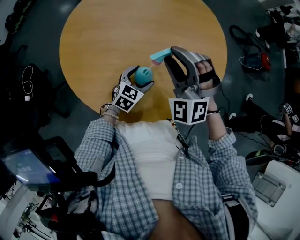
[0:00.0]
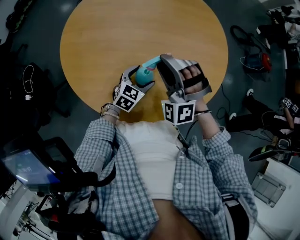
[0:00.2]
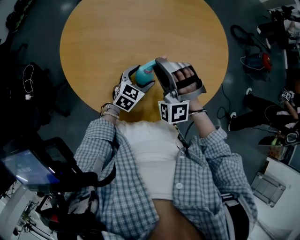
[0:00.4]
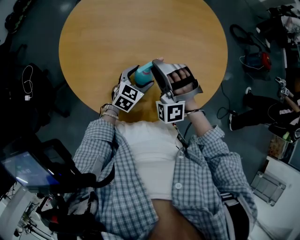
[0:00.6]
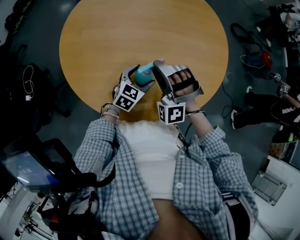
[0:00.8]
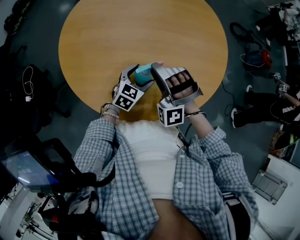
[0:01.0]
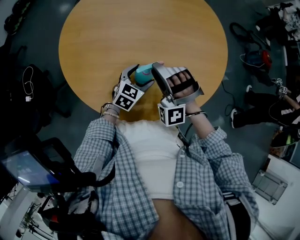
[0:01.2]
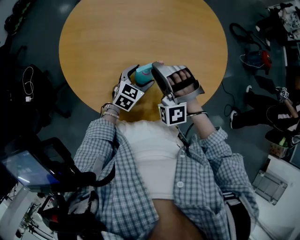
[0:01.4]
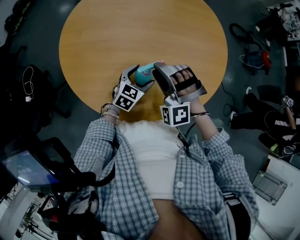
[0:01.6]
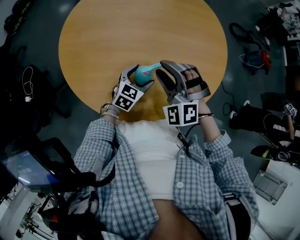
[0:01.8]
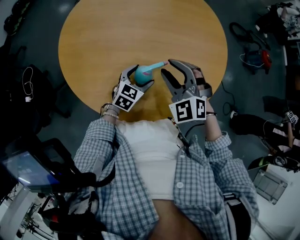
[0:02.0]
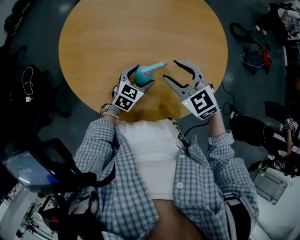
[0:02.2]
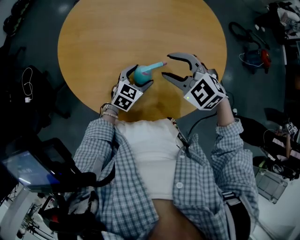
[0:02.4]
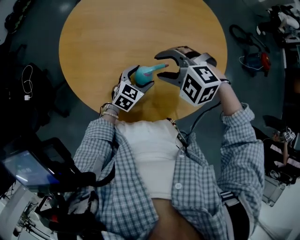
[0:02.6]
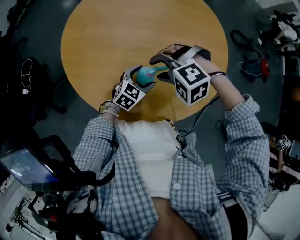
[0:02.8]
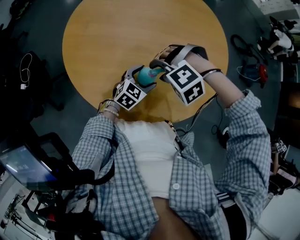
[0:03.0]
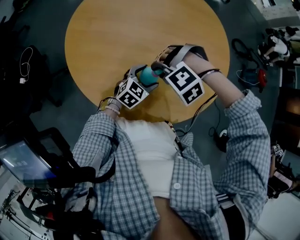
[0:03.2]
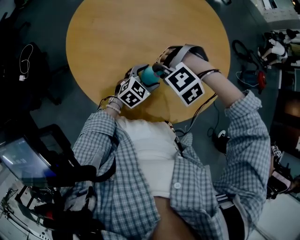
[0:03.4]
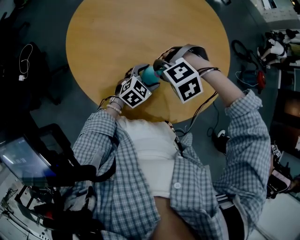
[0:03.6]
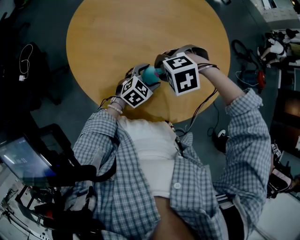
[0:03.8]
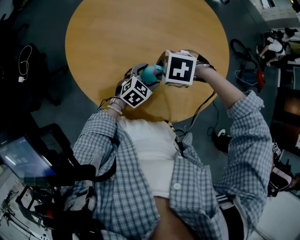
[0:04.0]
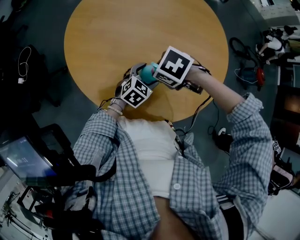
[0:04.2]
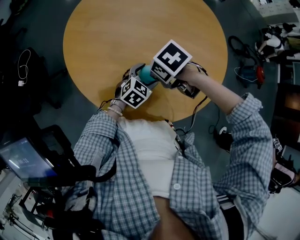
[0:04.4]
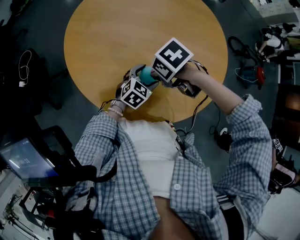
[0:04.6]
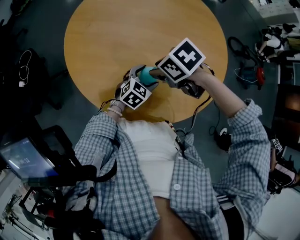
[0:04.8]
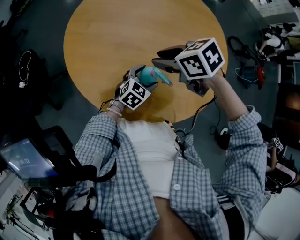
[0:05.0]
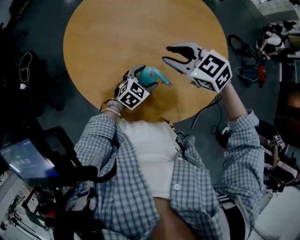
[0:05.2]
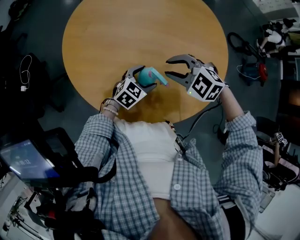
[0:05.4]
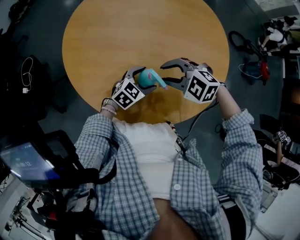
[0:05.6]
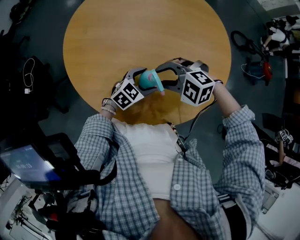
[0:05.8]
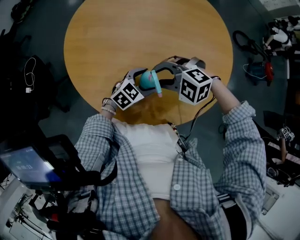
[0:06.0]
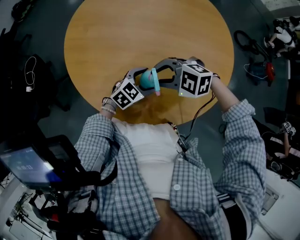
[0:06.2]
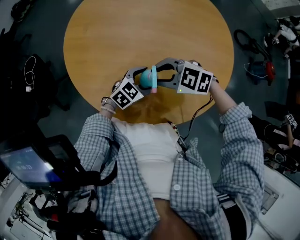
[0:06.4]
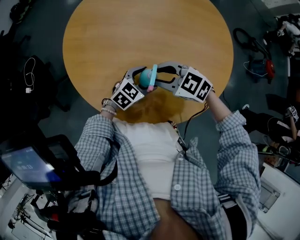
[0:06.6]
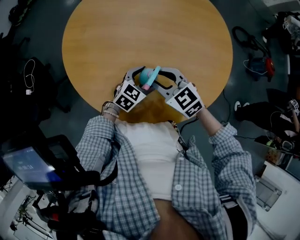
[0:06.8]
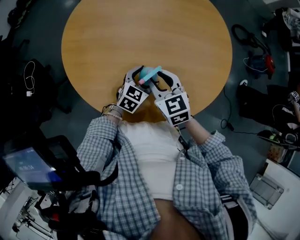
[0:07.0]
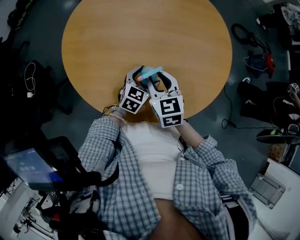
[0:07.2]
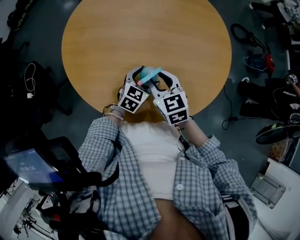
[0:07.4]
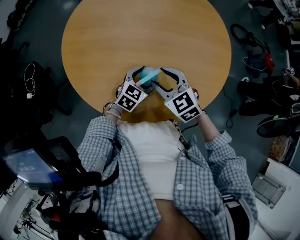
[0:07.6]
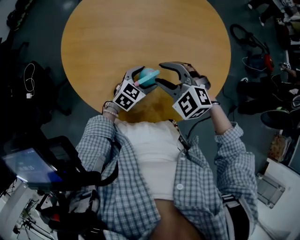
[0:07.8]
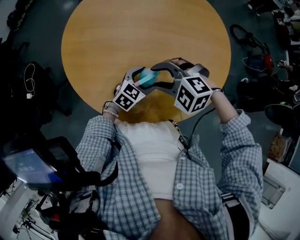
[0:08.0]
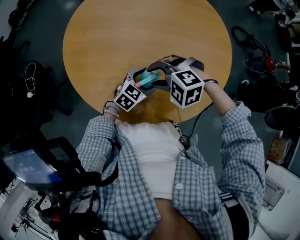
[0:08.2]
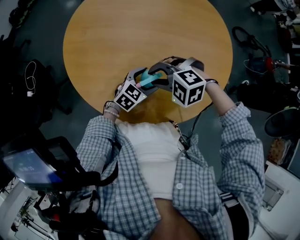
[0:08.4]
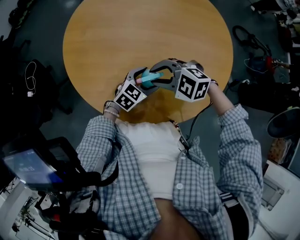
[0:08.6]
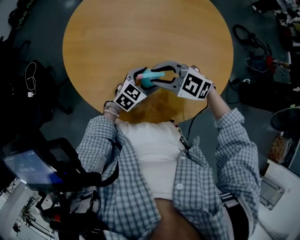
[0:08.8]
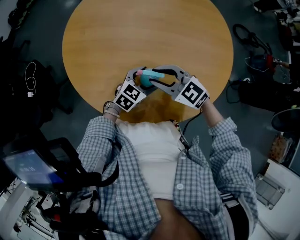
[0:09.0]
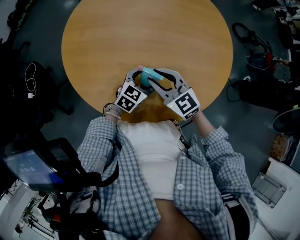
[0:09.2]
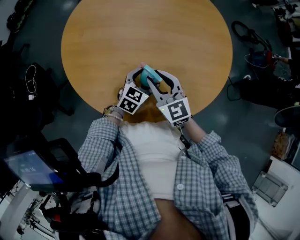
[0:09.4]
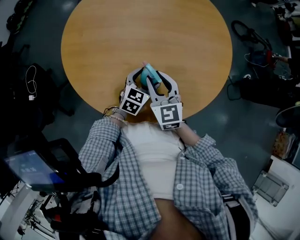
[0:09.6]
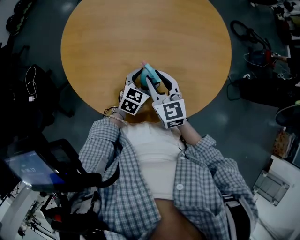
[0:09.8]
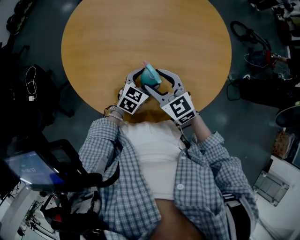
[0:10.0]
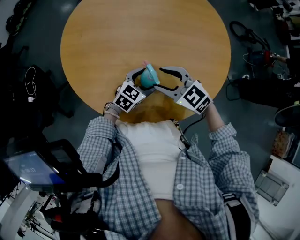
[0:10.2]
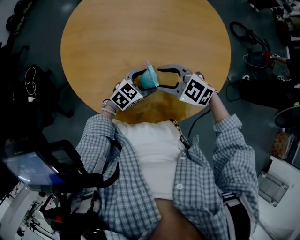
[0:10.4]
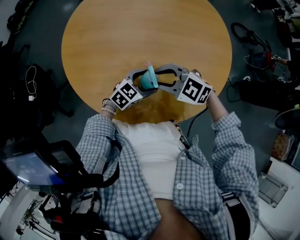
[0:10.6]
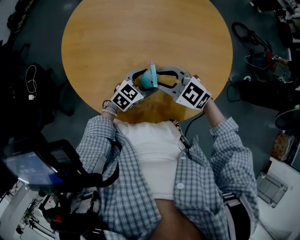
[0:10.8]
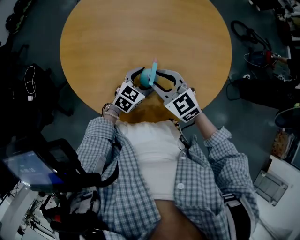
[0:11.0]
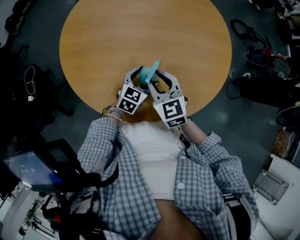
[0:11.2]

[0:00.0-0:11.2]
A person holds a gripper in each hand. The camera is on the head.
0:00.0 to 0:01.6: The right gripper is displaced downward by approximately 10 cm.
0:01.6 to 0:03.2: The right gripper angles its fingers downward, by some 50 degrees.
0:03.2 to 0:04.8: The right gripper twists about 90 degrees clockwise, seen from behind.
0:04.8 to 0:06.4: The right gripper travels upward and back again, roughly 5 cm each way, and rolls counterclockwise, seen from behind, by roughly 40 degrees.
0:06.4 to 0:08.0: The right gripper turns by roughly 30 degrees.
0:08.0 to 0:09.6: The right gripper angles its fingers upward, by approximately 30 degrees.
0:09.6 to 0:11.2: The right gripper opens, then closes again.

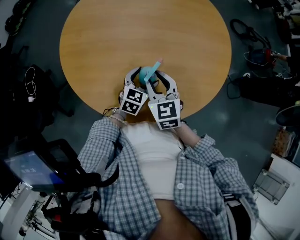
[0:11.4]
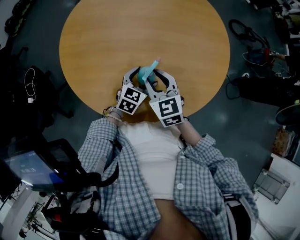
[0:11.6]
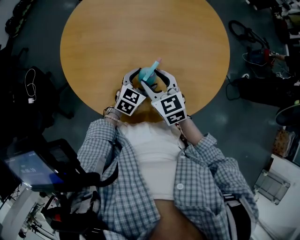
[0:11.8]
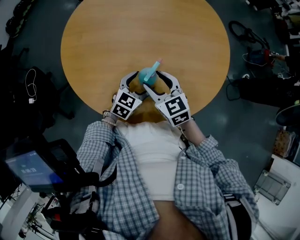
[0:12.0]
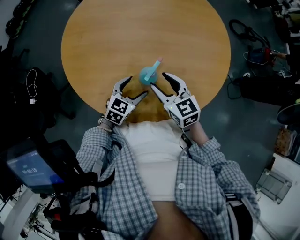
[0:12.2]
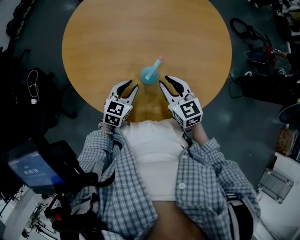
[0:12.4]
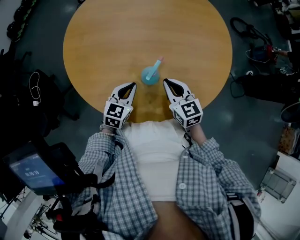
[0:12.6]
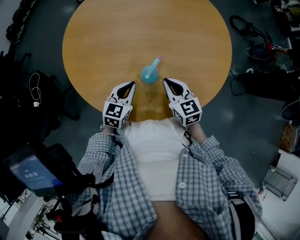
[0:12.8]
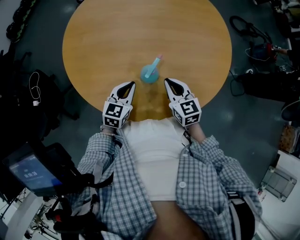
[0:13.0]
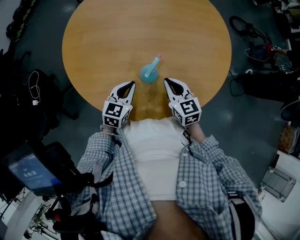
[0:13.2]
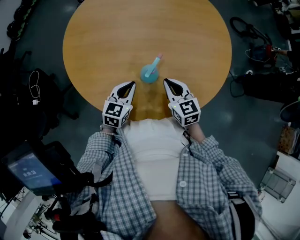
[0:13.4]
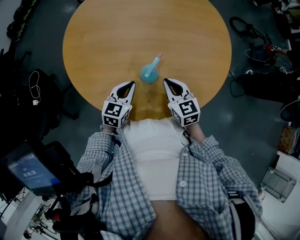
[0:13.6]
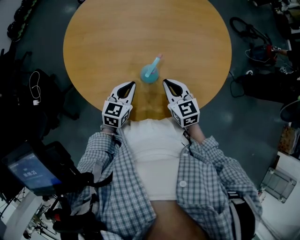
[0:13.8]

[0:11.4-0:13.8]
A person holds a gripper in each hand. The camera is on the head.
0:11.4 to 0:12.6: The left gripper moves to the left, roughly 10 cm, and closes its fingers. Meanwhile the right gripper shifts roughly 5 cm to the right, and closes.
0:12.6 to 0:13.8: The grippers make only small movements.

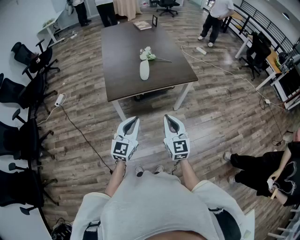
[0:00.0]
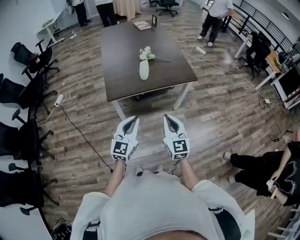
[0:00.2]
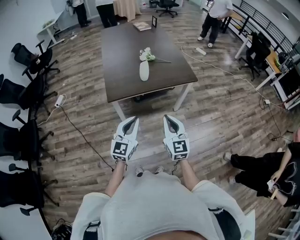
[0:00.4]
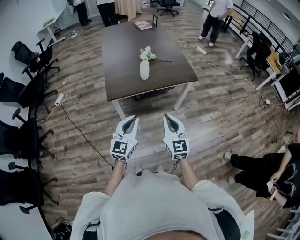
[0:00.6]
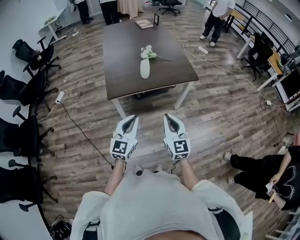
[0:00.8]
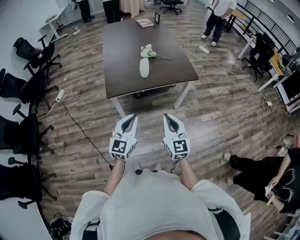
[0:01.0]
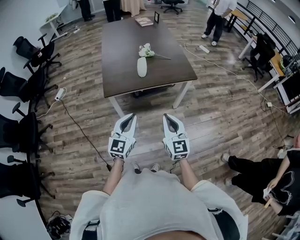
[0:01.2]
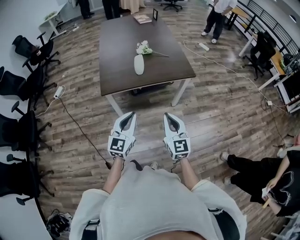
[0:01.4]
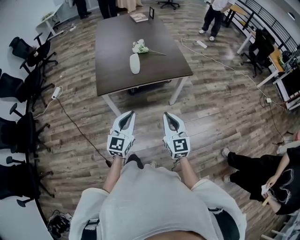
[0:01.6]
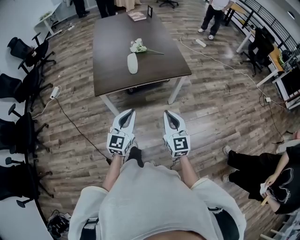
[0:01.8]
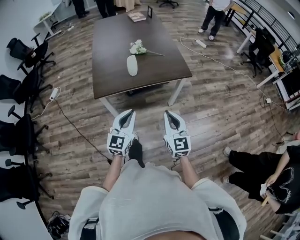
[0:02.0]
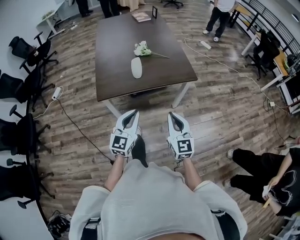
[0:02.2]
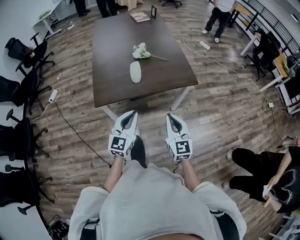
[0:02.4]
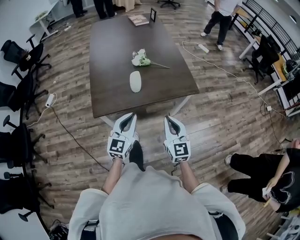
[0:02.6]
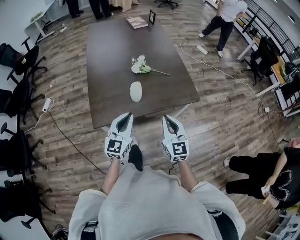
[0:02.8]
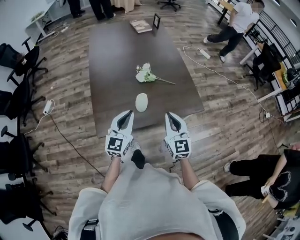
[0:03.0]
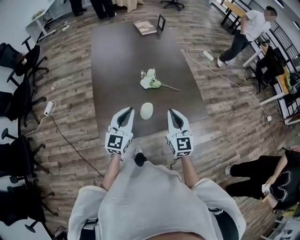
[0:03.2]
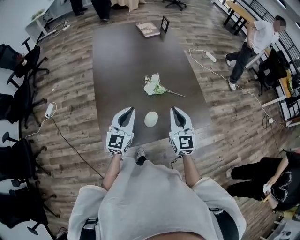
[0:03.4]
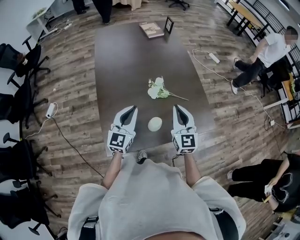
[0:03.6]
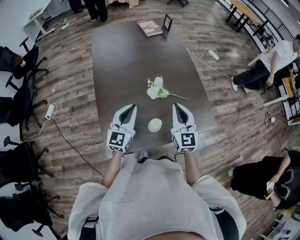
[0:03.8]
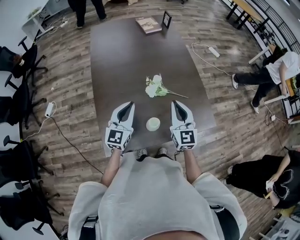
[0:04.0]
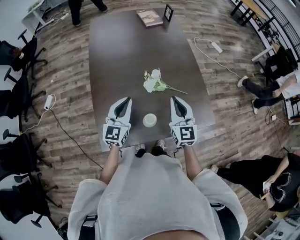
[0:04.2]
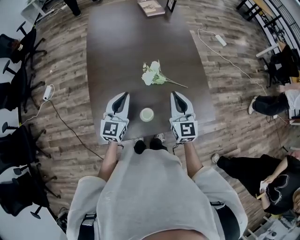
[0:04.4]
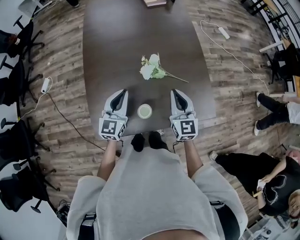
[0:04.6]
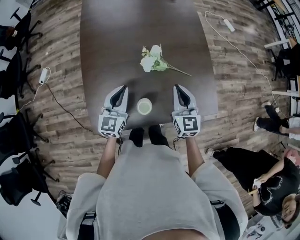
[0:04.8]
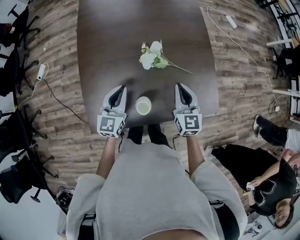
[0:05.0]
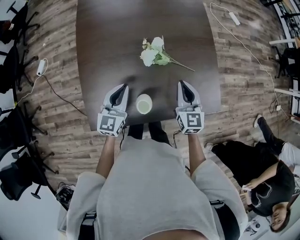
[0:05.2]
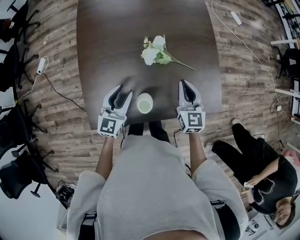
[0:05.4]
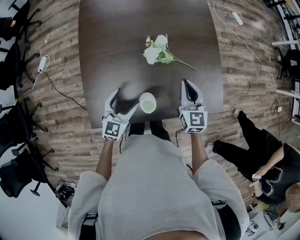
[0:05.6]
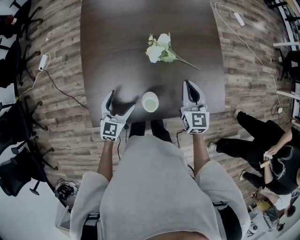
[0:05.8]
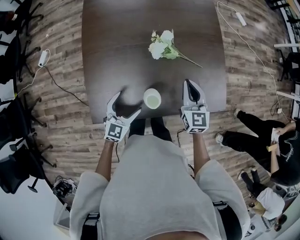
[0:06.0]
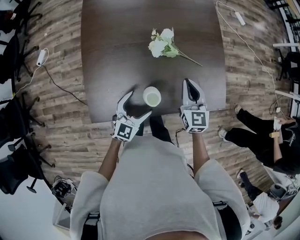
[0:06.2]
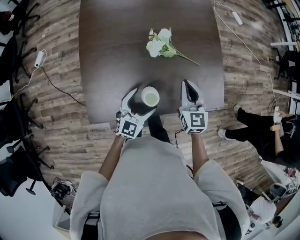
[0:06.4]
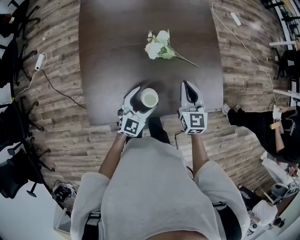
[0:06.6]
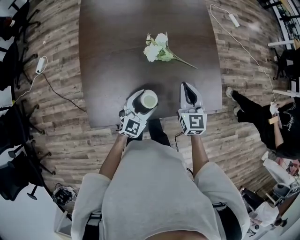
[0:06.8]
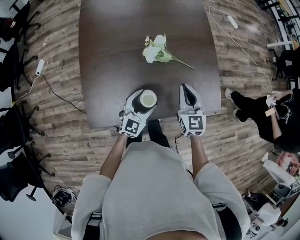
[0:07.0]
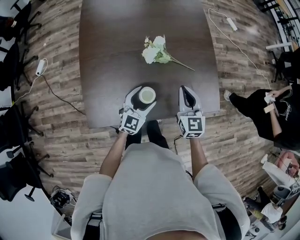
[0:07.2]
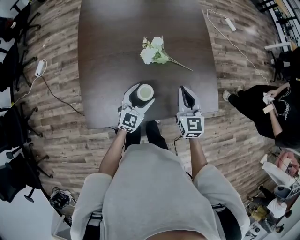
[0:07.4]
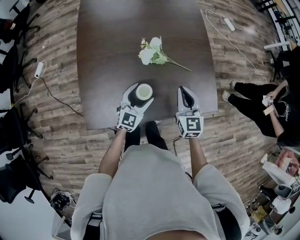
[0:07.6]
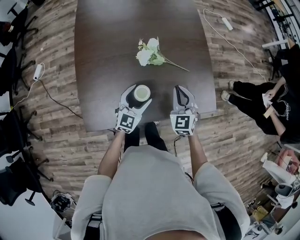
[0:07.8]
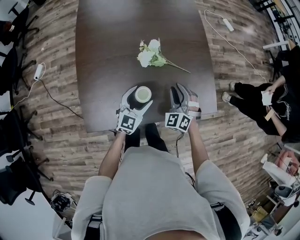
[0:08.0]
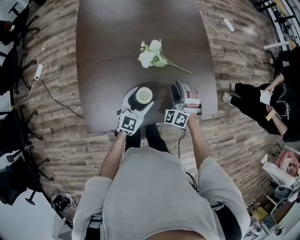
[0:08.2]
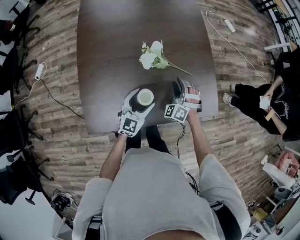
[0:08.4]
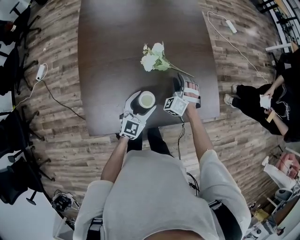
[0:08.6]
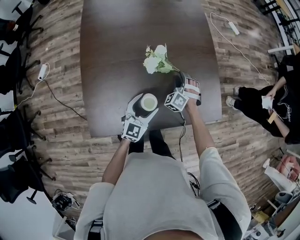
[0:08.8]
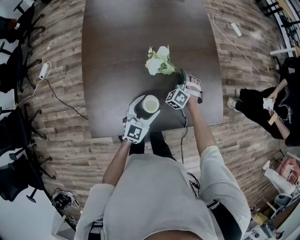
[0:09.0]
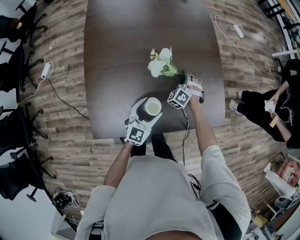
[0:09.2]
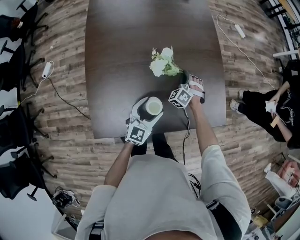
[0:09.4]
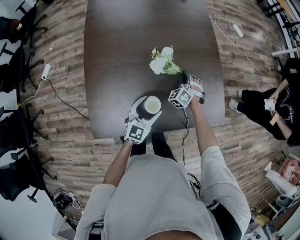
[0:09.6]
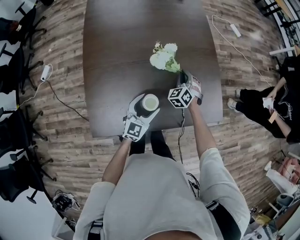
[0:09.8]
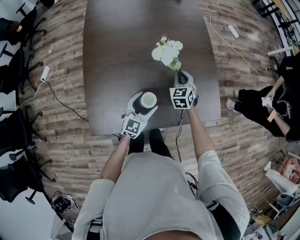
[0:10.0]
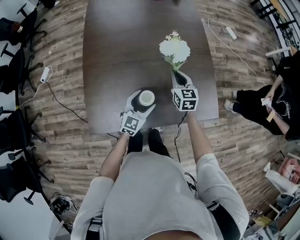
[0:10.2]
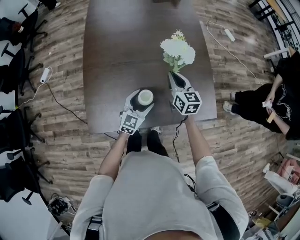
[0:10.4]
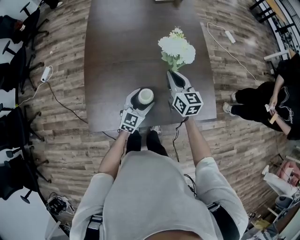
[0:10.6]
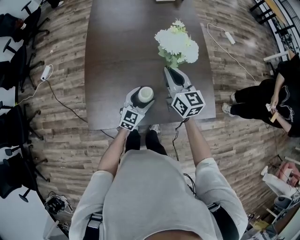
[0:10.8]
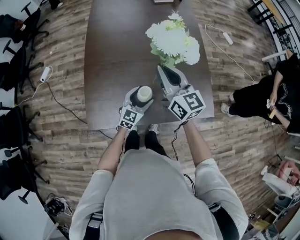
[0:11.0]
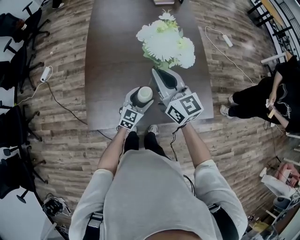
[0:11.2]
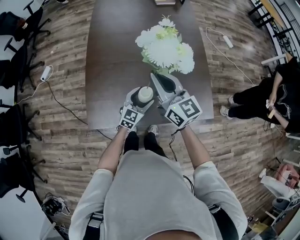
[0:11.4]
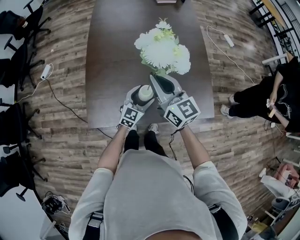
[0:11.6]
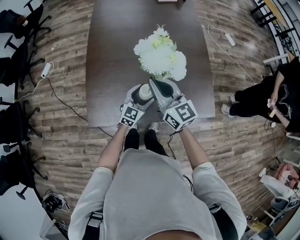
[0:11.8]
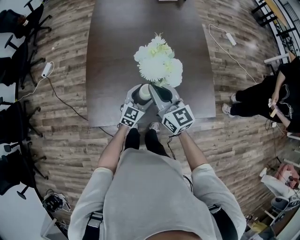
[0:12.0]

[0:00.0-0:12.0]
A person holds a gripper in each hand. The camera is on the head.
0:00.0 to 0:01.6: The grippers both shift to the right by approximately 5 cm.
0:01.6 to 0:03.0: The grippers both shift forward by approximately 35 cm.
0:03.0 to 0:04.4: The grippers both shift forward by roughly 20 cm.
0:04.4 to 0:06.0: The left gripper goes some 20 cm downward and backward, turns by approximately 20 degrees, and opens up. The right gripper heads downward, covering some 10 cm.
0:06.0 to 0:07.6: The left gripper heads to the right and forward, covering approximately 10 cm.
0:07.6 to 0:09.0: The right gripper shifts about 20 cm downward and forward, twists about 60 degrees counterclockwise, seen from behind, and opens its fingers.
0:09.0 to 0:10.4: The right gripper travels upward by roughly 15 cm, rotates around the line of its fingers by some 70 degrees, clockwise from behind, and closes its fingers.
0:10.4 to 0:12.0: The right gripper moves upward, backward and to the left, some 15 cm, and changes its angle by some 20 degrees.
